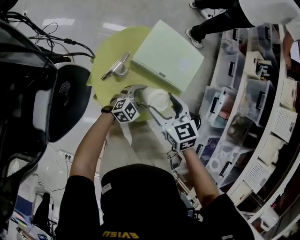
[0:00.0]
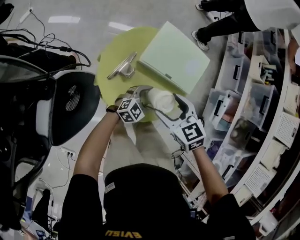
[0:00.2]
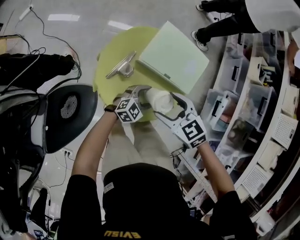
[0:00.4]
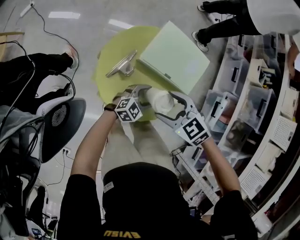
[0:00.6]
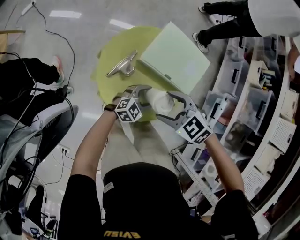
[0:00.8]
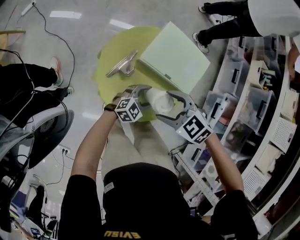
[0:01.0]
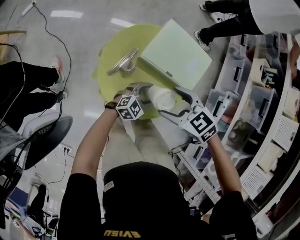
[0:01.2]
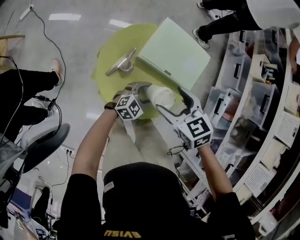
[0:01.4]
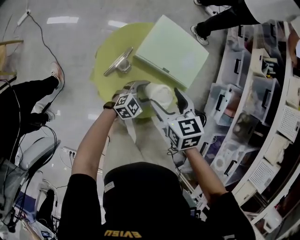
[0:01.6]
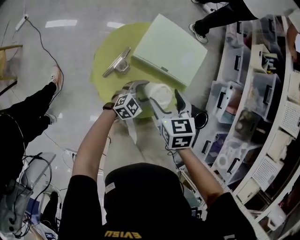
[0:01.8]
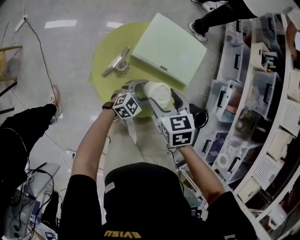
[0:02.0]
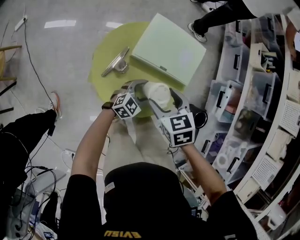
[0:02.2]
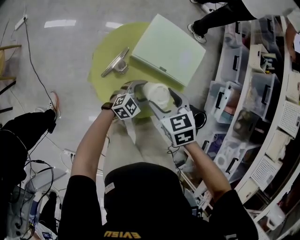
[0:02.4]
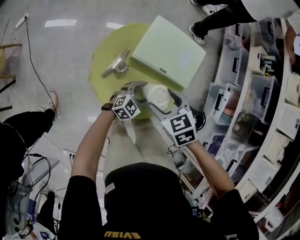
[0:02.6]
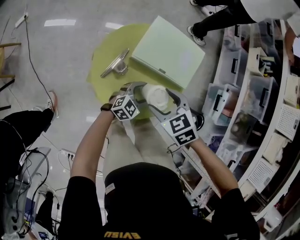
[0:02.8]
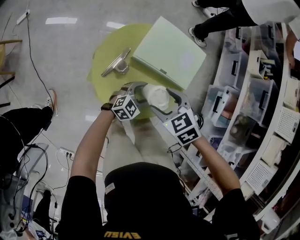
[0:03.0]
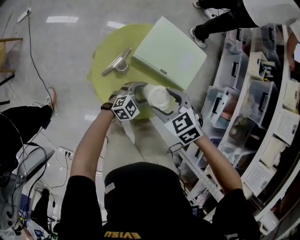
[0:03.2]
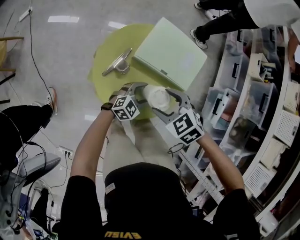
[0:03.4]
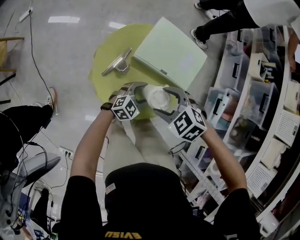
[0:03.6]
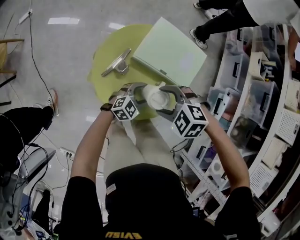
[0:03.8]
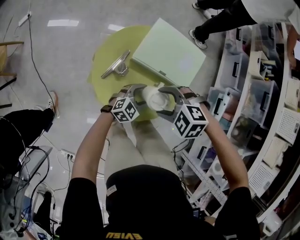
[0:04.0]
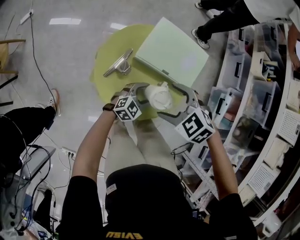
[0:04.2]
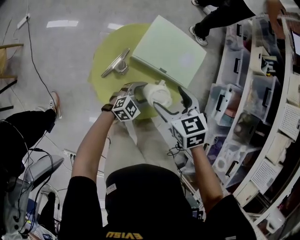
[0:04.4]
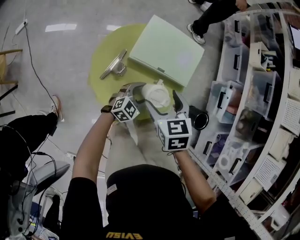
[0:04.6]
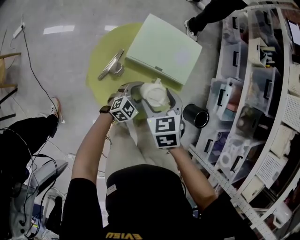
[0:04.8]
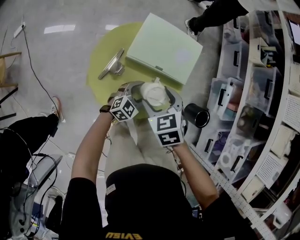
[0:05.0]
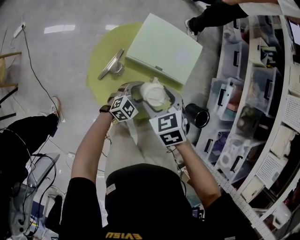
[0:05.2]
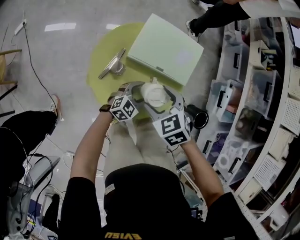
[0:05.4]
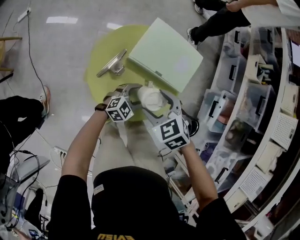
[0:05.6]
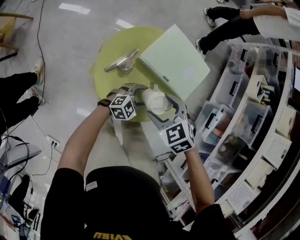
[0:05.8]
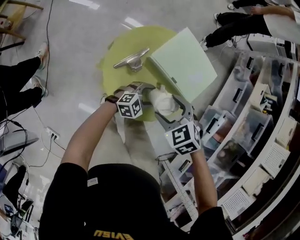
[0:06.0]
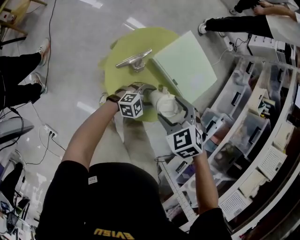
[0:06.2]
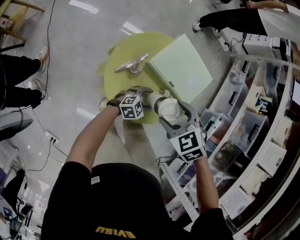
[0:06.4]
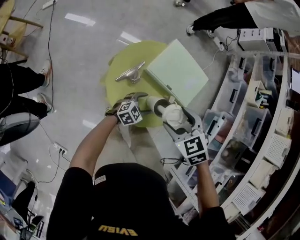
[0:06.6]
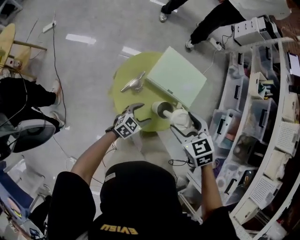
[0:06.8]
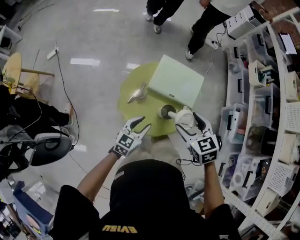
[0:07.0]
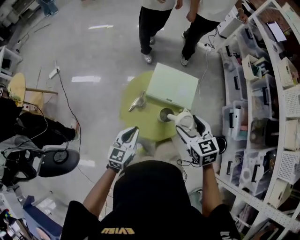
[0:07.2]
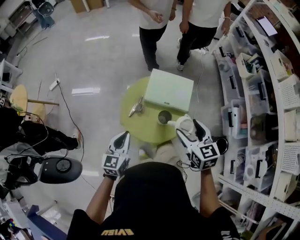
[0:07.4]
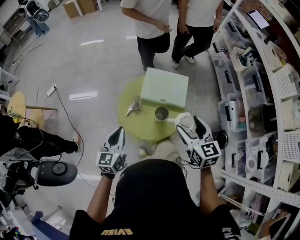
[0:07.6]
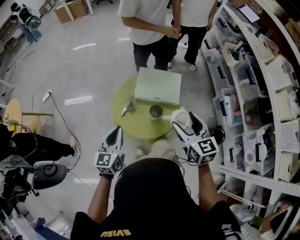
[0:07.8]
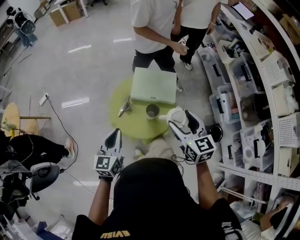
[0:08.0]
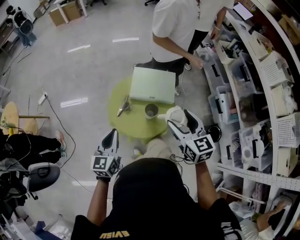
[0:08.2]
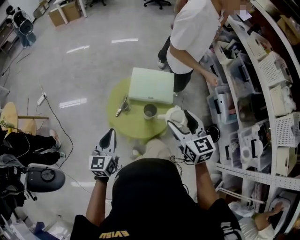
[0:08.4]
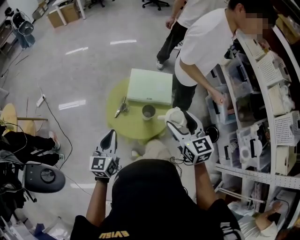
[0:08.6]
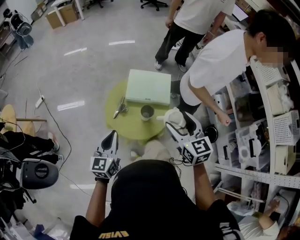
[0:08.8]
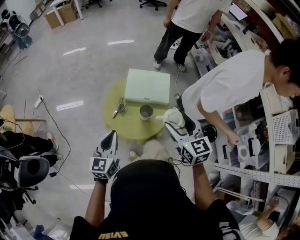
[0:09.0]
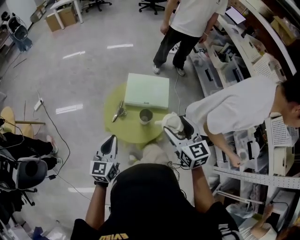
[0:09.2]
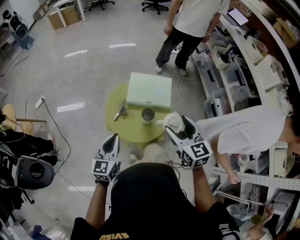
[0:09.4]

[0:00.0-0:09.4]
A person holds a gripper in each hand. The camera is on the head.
0:01.6 to 0:03.2: The right gripper rotates approximately 30 degrees.
0:03.2 to 0:04.8: The right gripper swivels about 30 degrees.
0:04.8 to 0:06.2: The right gripper rolls counterclockwise, seen from behind, by about 40 degrees.
0:06.2 to 0:07.8: The left gripper is displaced upward and to the left by roughly 40 cm, rotates some 40 degrees, and closes. The right gripper shifts about 25 cm upward and to the right, and tips its fingers upward by about 40 degrees.
0:07.8 to 0:09.4: The grippers move only a little.

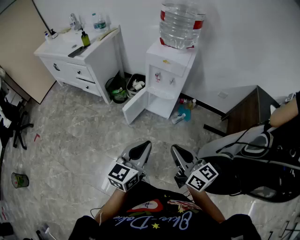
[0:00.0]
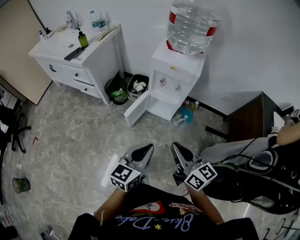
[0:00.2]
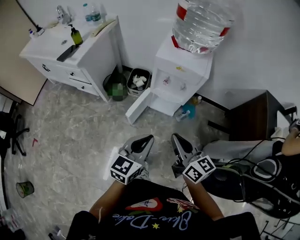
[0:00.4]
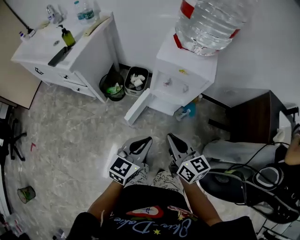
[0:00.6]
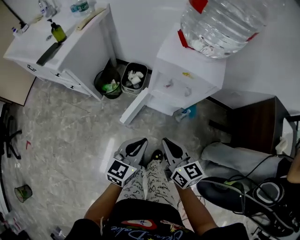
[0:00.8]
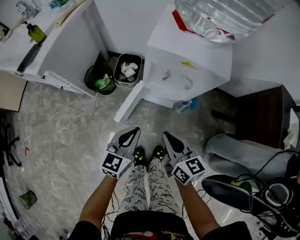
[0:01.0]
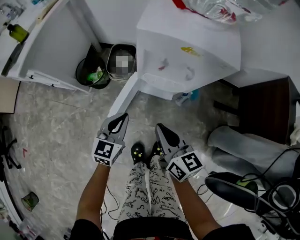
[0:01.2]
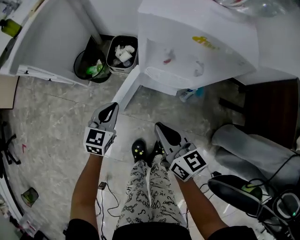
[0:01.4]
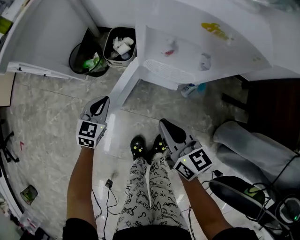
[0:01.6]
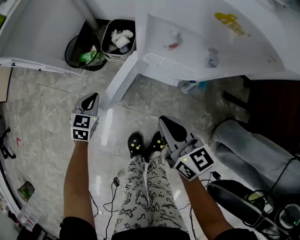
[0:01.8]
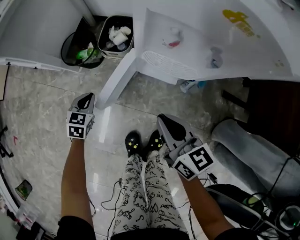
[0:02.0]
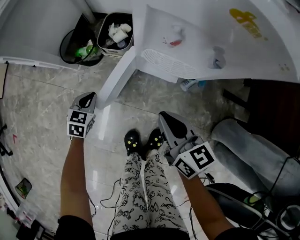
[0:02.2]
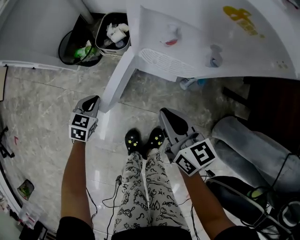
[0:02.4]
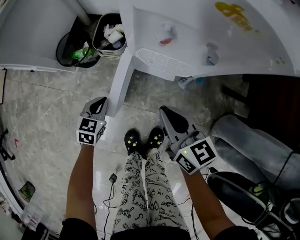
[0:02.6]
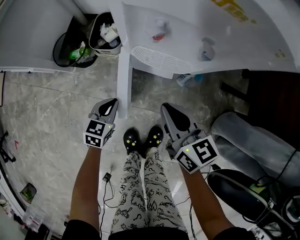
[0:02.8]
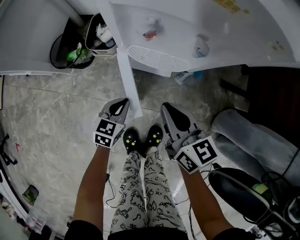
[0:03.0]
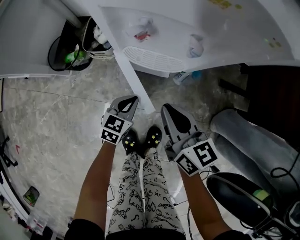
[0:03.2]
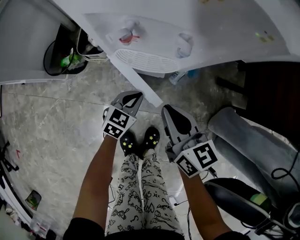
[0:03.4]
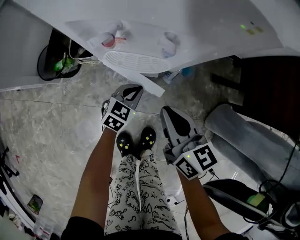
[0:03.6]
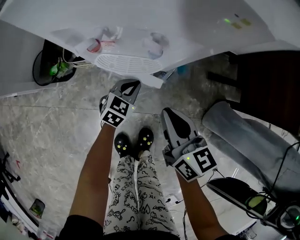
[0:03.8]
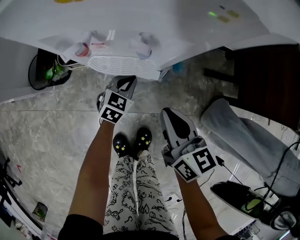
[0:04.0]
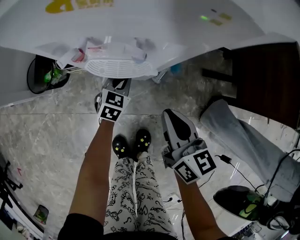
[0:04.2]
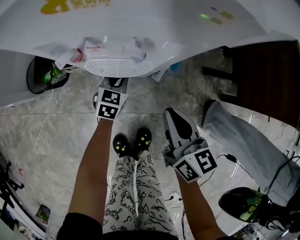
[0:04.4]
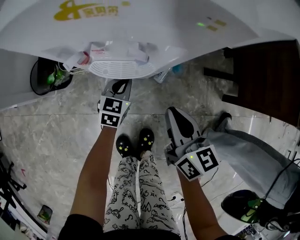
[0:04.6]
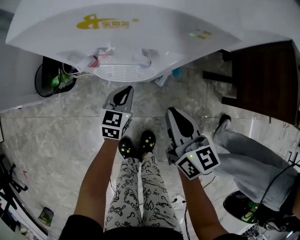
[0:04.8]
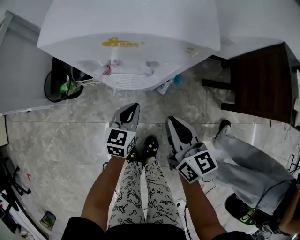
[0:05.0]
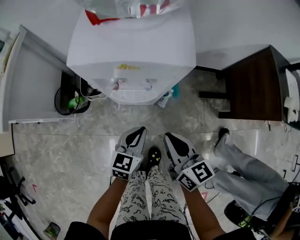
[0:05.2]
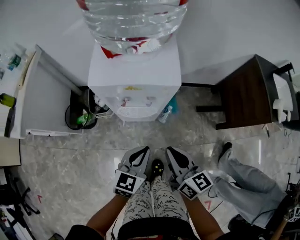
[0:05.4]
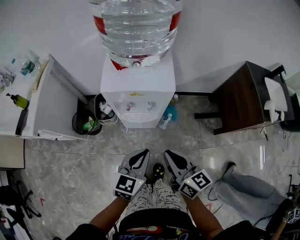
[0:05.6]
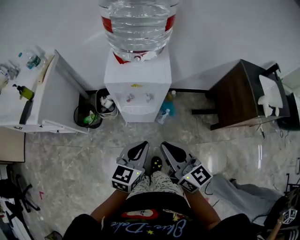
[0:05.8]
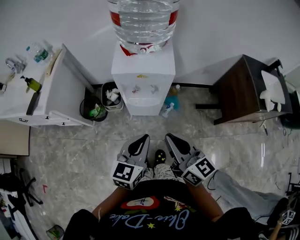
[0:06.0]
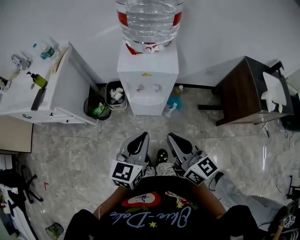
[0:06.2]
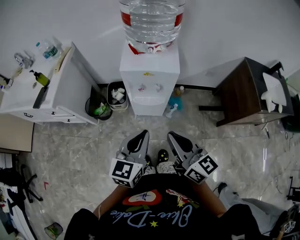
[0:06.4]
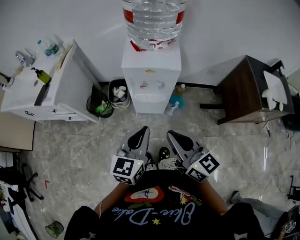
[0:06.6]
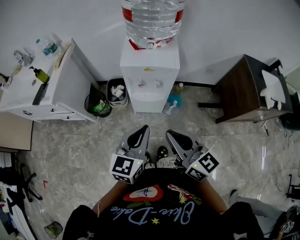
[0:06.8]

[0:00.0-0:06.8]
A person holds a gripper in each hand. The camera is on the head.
0:00.0 to 0:01.4: The left gripper is displaced forward, downward and to the left by approximately 60 cm, and swivels about 30 degrees, while the right gripper travels forward and downward by roughly 40 cm.
0:01.4 to 0:02.8: The right gripper moves downward and to the right, about 10 cm. Meanwhile the left gripper travels downward by roughly 15 cm.
0:02.8 to 0:04.0: The right gripper travels to the right by about 10 cm, while the left gripper heads to the right and forward, covering some 25 cm, and rotates approximately 20 degrees.
0:04.0 to 0:05.4: The right gripper is displaced upward by approximately 20 cm, while the left gripper is displaced upward and backward by roughly 35 cm.
0:05.4 to 0:06.8: Both grippers travel together upward and backward, about 25 cm. The right gripper turns by some 20 degrees.

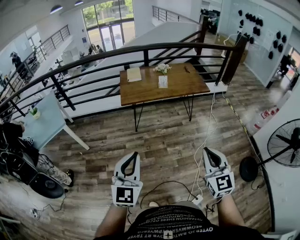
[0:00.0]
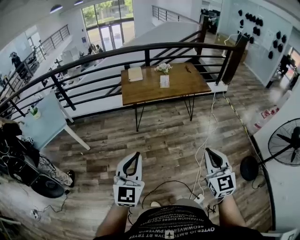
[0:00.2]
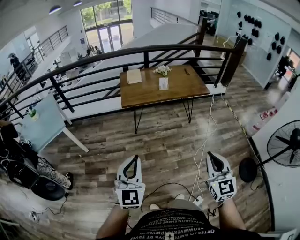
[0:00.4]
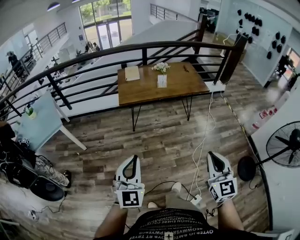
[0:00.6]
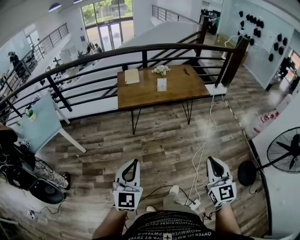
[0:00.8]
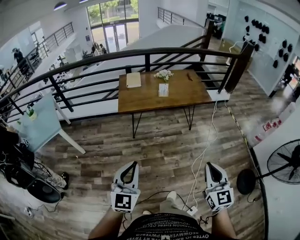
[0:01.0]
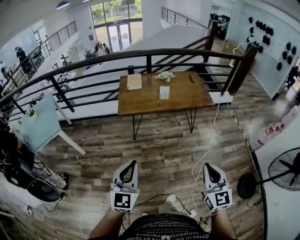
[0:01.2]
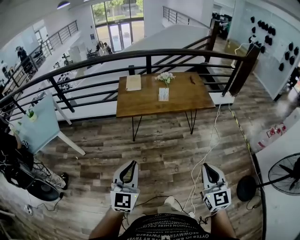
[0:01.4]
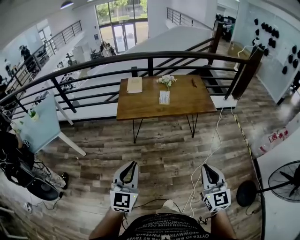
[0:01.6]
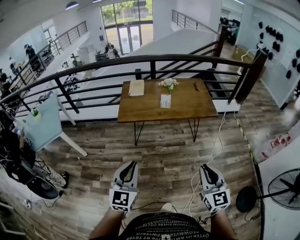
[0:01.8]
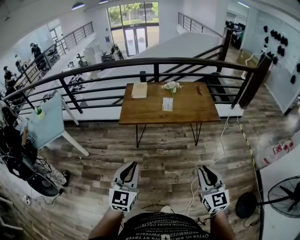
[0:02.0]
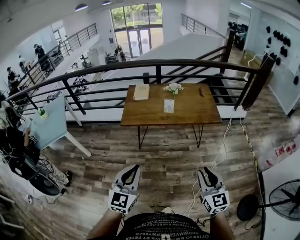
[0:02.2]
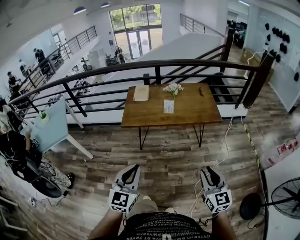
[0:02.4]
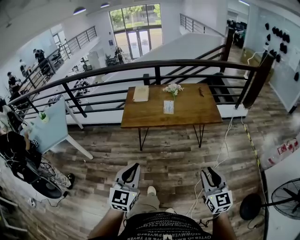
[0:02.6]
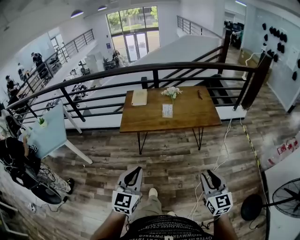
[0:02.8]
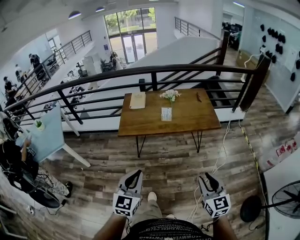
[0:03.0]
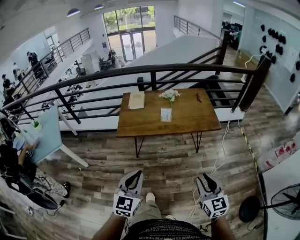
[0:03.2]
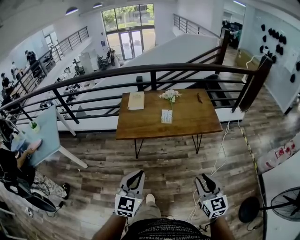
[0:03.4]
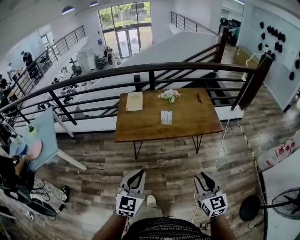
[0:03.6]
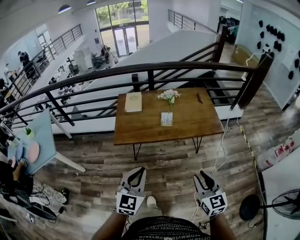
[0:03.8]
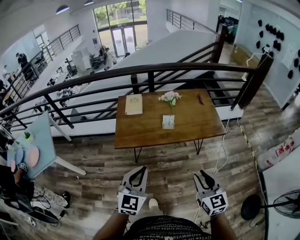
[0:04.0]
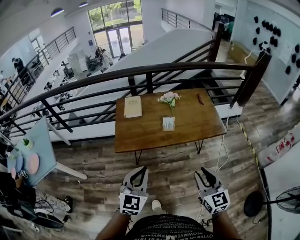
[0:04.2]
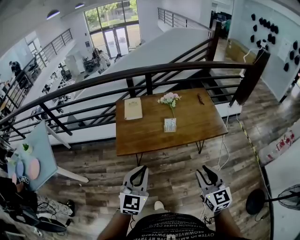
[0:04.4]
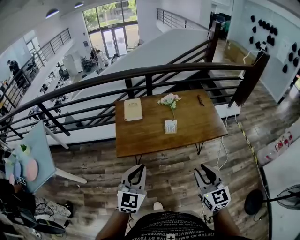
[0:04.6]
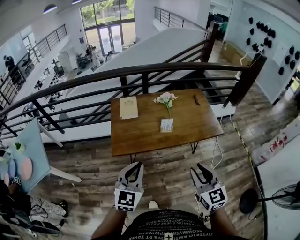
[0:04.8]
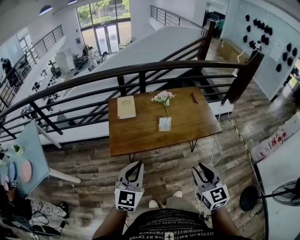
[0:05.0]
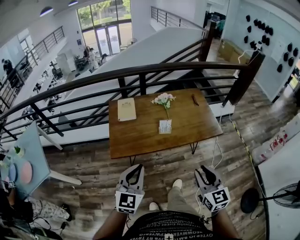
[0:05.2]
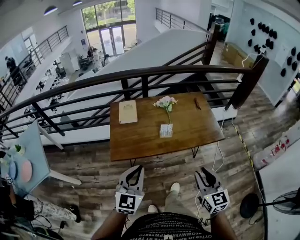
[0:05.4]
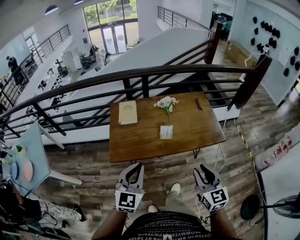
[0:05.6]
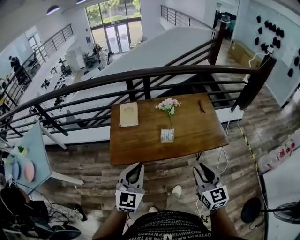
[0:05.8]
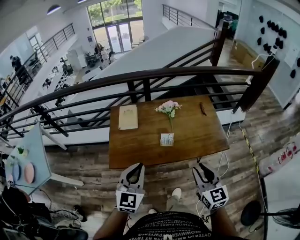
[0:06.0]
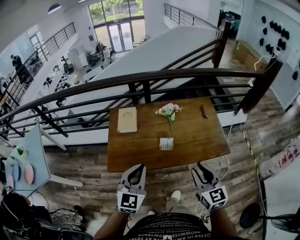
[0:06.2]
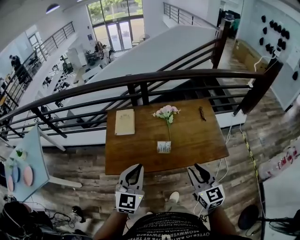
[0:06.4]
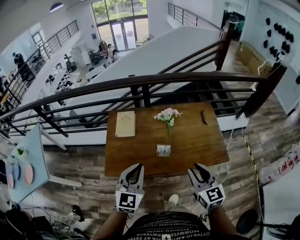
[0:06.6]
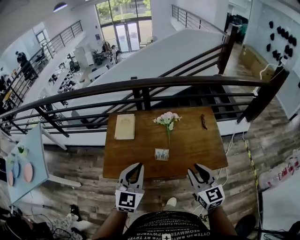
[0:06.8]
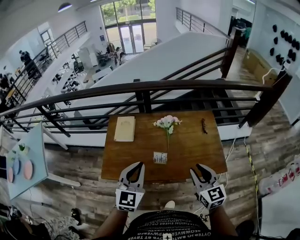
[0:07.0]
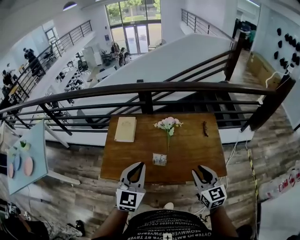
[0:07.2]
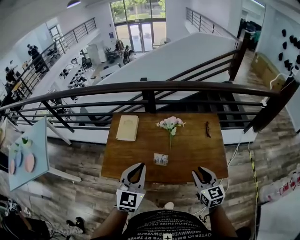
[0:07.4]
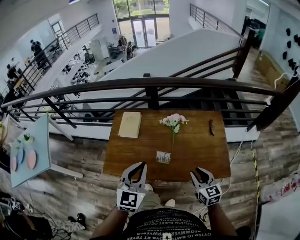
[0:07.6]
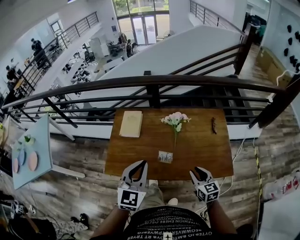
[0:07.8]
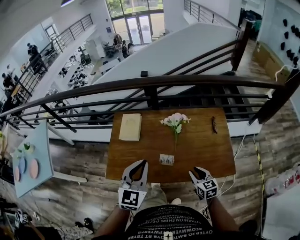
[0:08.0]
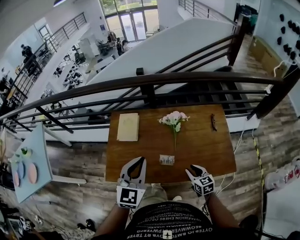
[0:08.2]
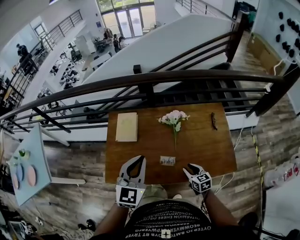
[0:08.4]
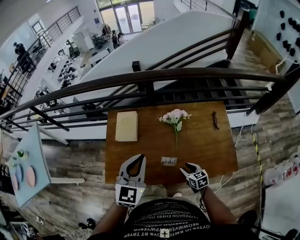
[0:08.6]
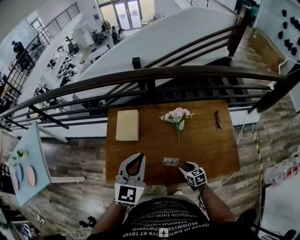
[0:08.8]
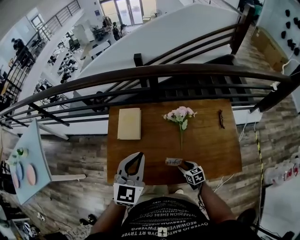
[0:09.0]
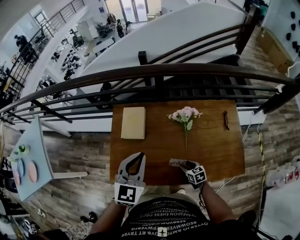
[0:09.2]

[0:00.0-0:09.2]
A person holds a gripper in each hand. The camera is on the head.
0:00.0 to 0:01.6: The grippers both shift forward and to the right by approximately 20 cm.
0:01.6 to 0:03.0: The grippers both shift forward and to the right by approximately 10 cm. The right gripper opens up.
0:03.0 to 0:04.6: The right gripper goes roughly 25 cm forward and to the left. Meanwhile the left gripper shifts approximately 25 cm forward.
0:04.6 to 0:06.2: Both grippers travel together forward, about 15 cm.
0:06.2 to 0:07.6: The right gripper travels forward, downward and to the right by approximately 20 cm, while the left gripper moves forward and to the right, about 10 cm.
0:07.6 to 0:09.2: The left gripper shifts about 20 cm forward and to the left; the right gripper heads downward, forward and to the left, covering about 30 cm, and turns by approximately 30 degrees.
